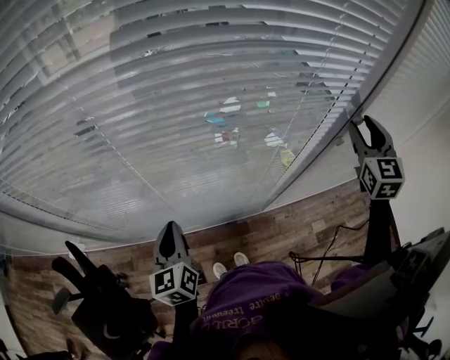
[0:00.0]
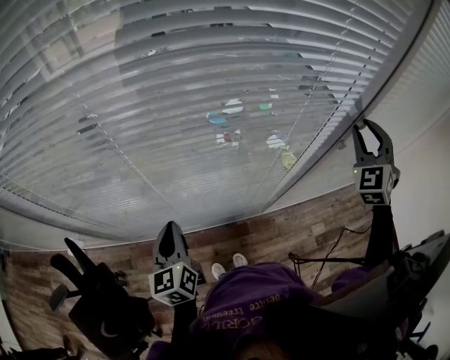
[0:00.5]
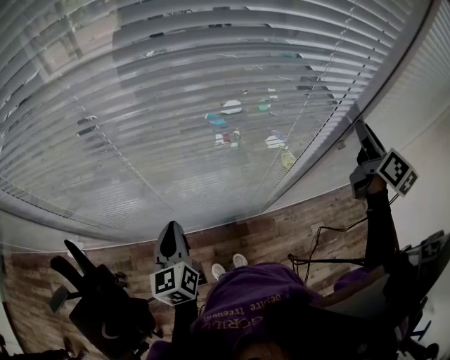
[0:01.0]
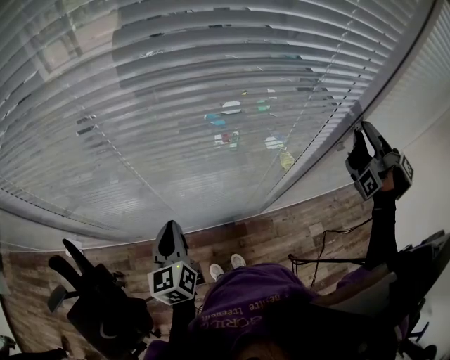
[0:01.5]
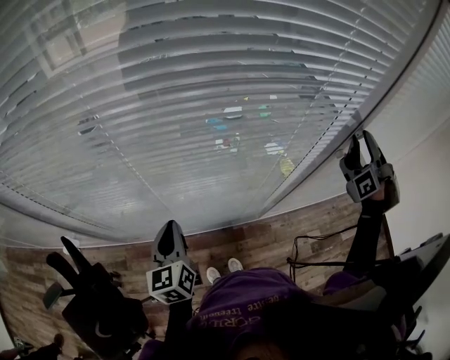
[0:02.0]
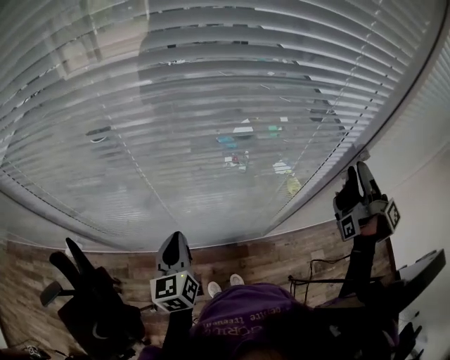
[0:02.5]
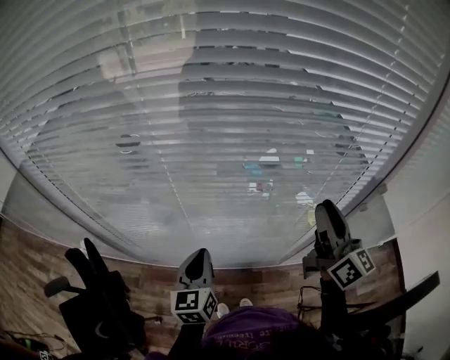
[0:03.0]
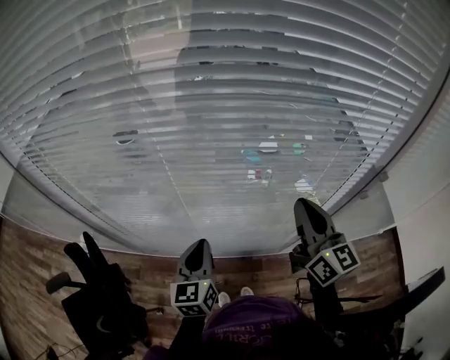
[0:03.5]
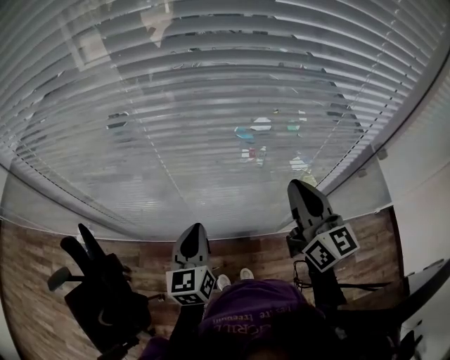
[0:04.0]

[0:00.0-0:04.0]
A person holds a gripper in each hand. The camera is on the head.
0:00.0 to 0:02.0: The right gripper twists approximately 130 degrees clockwise, seen from behind.
0:02.0 to 0:04.0: The right gripper is displaced to the left by some 30 cm, rolls counterclockwise, seen from behind, by some 90 degrees, and closes its fingers.

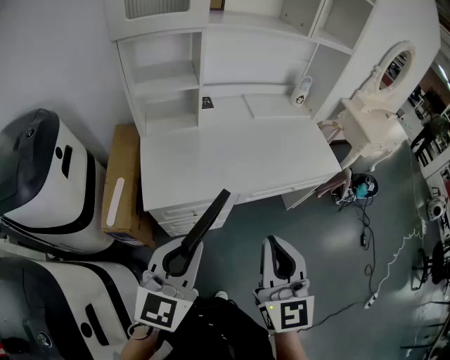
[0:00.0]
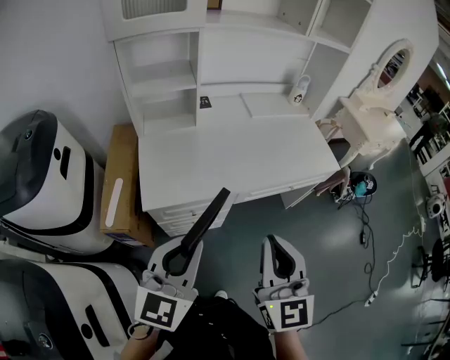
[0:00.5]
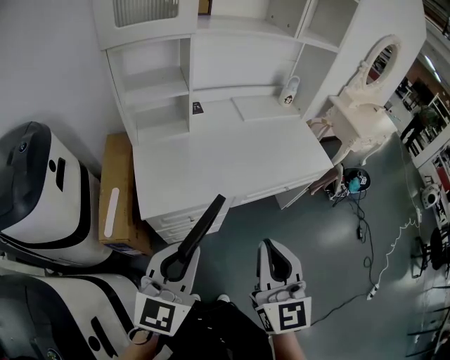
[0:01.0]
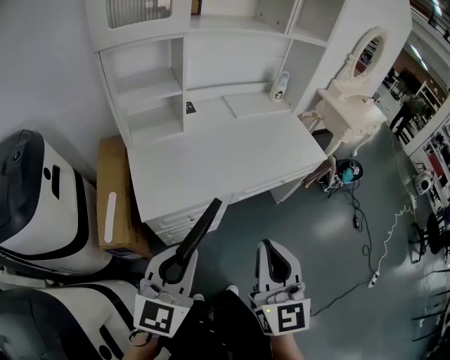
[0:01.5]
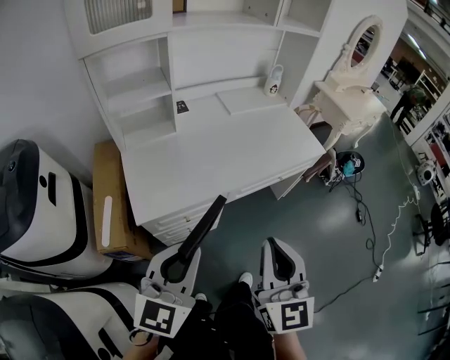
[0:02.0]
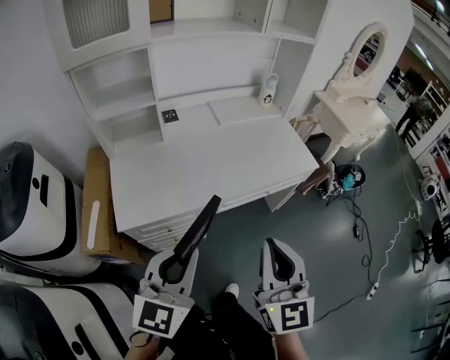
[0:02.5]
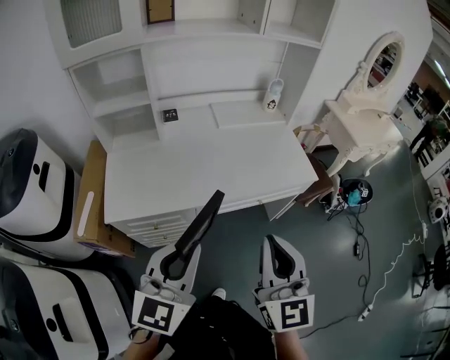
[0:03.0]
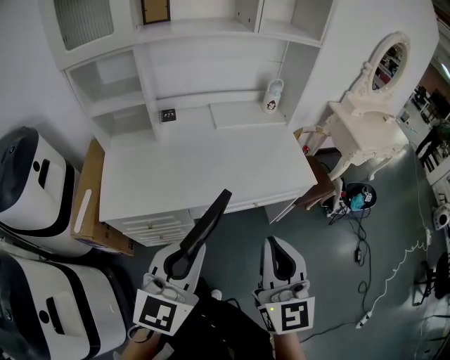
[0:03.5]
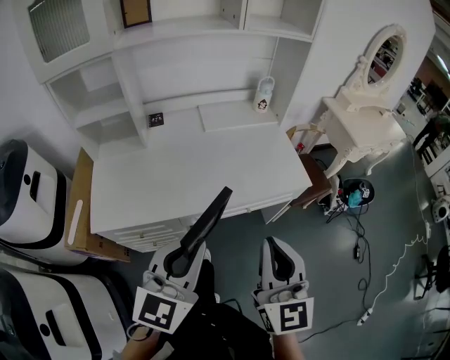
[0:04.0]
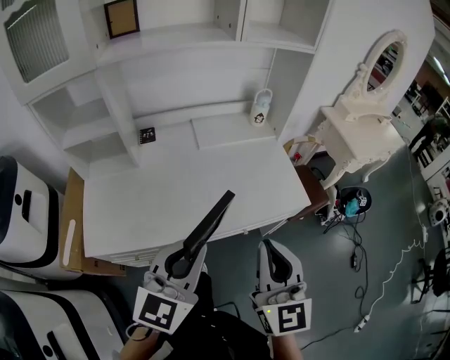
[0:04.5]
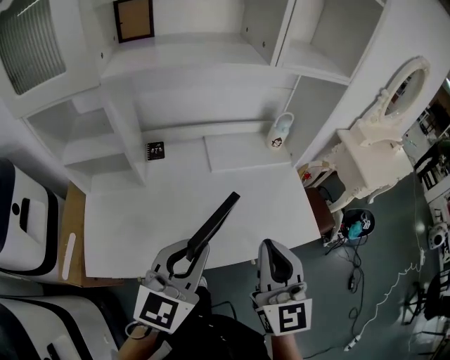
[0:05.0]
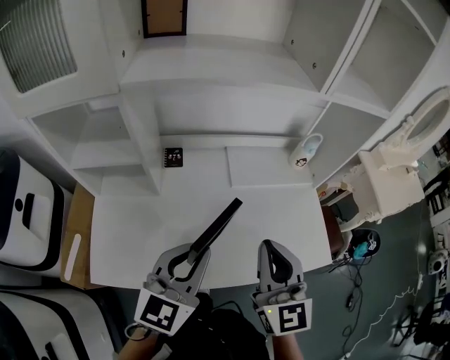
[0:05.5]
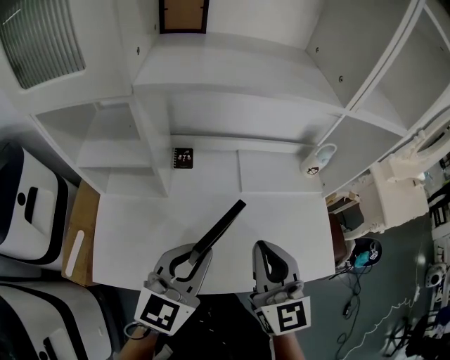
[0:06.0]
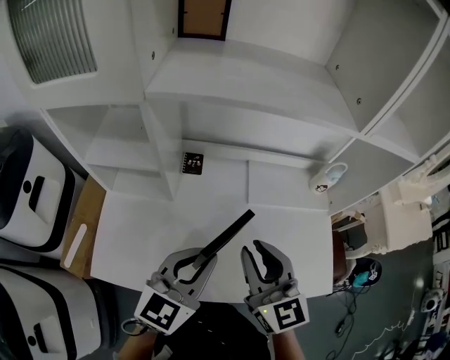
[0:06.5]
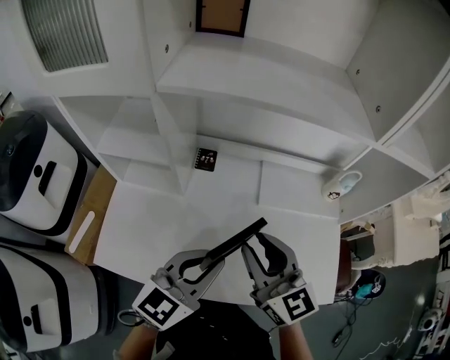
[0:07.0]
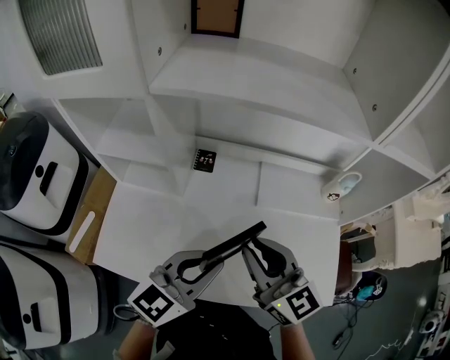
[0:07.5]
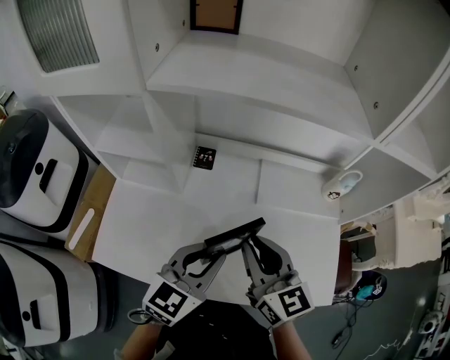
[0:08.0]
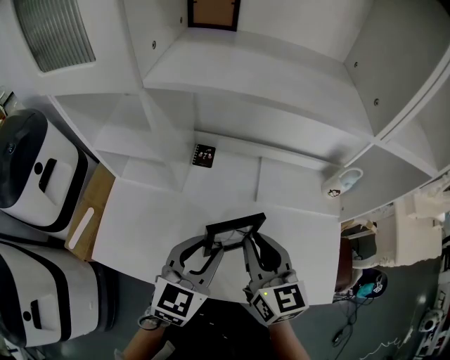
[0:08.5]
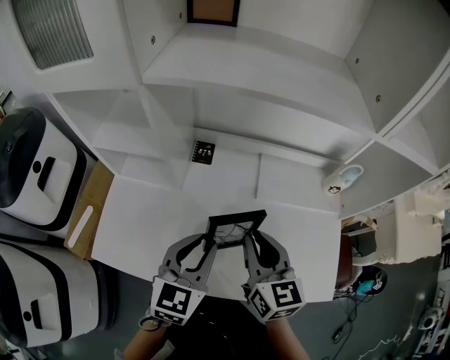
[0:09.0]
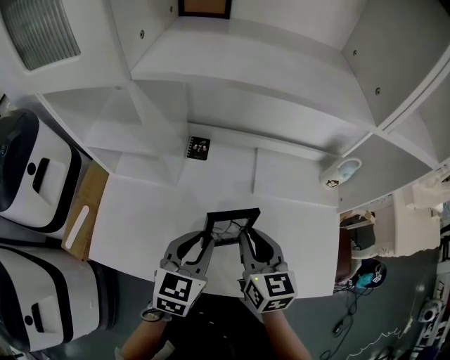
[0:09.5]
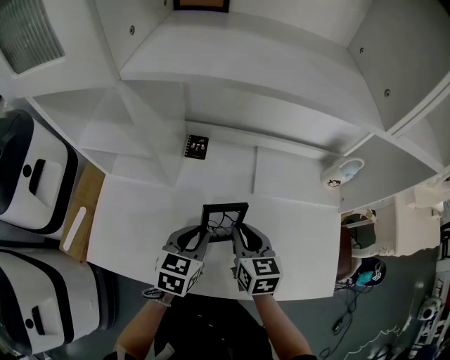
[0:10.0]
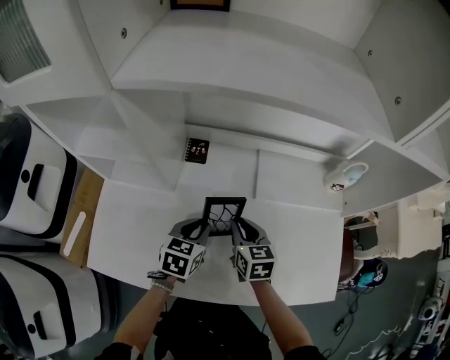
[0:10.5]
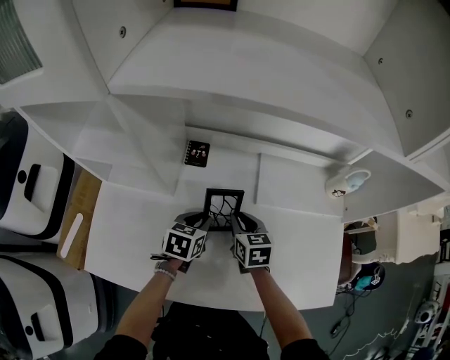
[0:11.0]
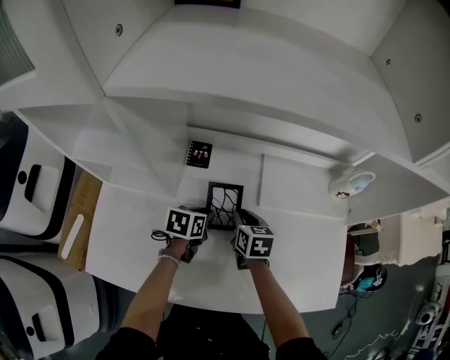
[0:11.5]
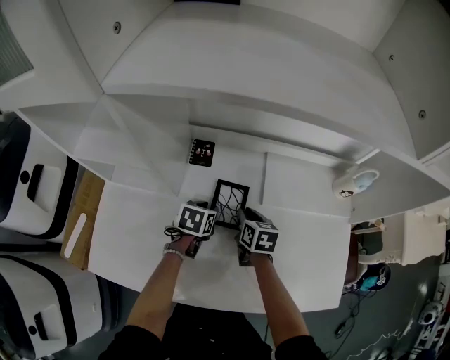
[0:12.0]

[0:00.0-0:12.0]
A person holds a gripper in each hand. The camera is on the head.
0:00.0 to 0:02.0: There are only small adjustments of the grippers.
0:02.0 to 0:04.0: Both grippers travel together to the right and forward, about 30 cm.
0:04.0 to 0:06.0: The grippers both shift forward and to the left by about 35 cm.
0:06.0 to 0:08.0: The right gripper is displaced forward by roughly 5 cm, and turns by some 20 degrees; the left gripper changes place by some 5 cm.
0:08.0 to 0:10.0: The grippers both shift downward by some 15 cm. The right gripper turns by some 20 degrees. Meanwhile the left gripper rotates some 30 degrees.
0:10.0 to 0:12.0: The left gripper is displaced forward and downward by approximately 20 cm, and swivels some 20 degrees. Meanwhile the right gripper moves downward and forward, some 15 cm.

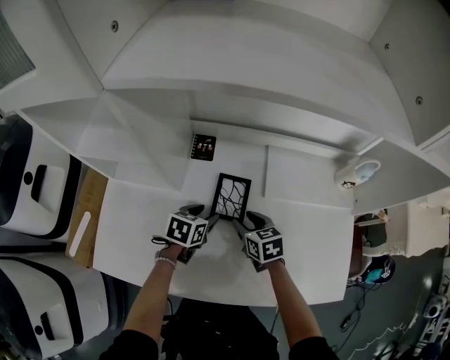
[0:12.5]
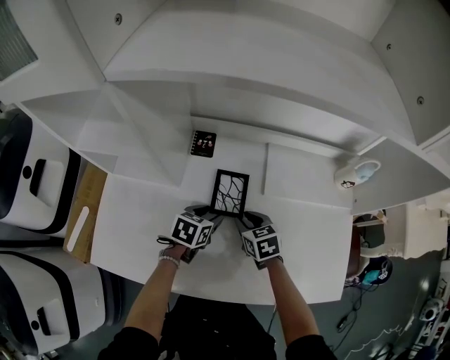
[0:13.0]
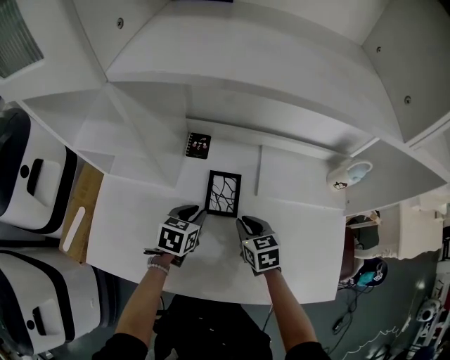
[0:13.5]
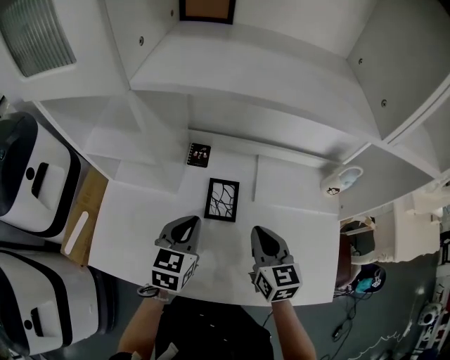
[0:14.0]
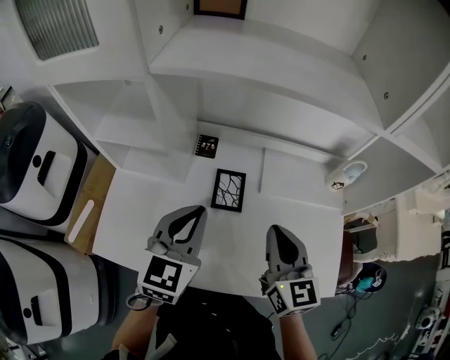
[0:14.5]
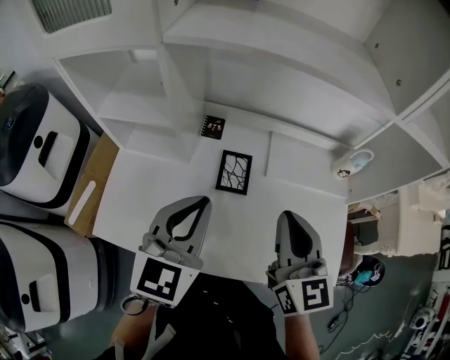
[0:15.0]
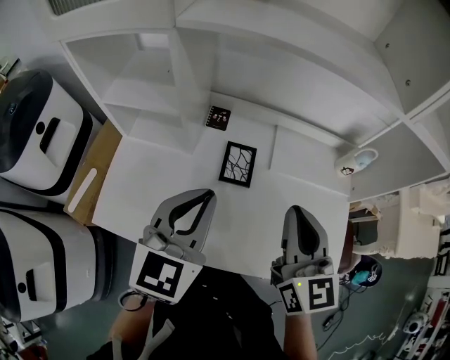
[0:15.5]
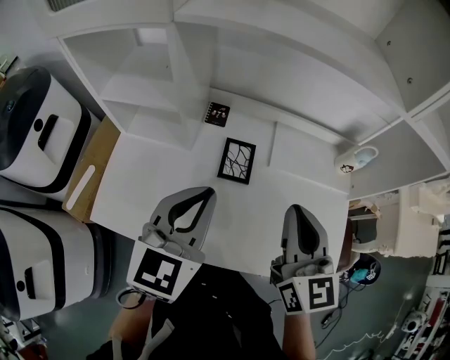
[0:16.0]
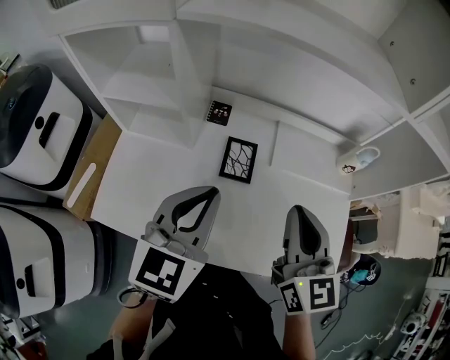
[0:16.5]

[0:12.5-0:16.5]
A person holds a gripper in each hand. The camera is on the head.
0:12.5 to 0:14.5: Both grippers travel together upward, approximately 25 cm. The right gripper tips its fingers upward by approximately 30 degrees, and closes up; the left gripper angles its fingers upward, by about 30 degrees, and closes up.
0:14.5 to 0:16.5: The left gripper shifts by some 5 cm. Meanwhile the right gripper changes place by about 5 cm.

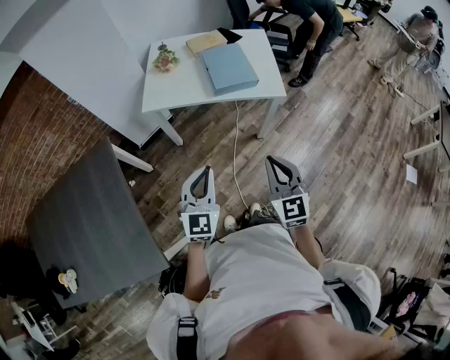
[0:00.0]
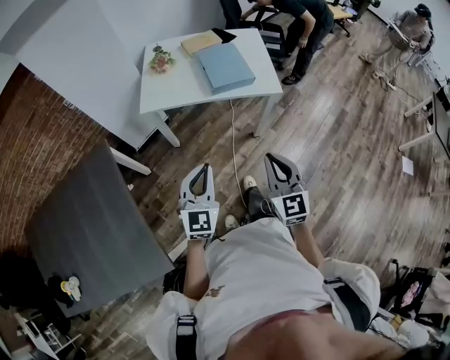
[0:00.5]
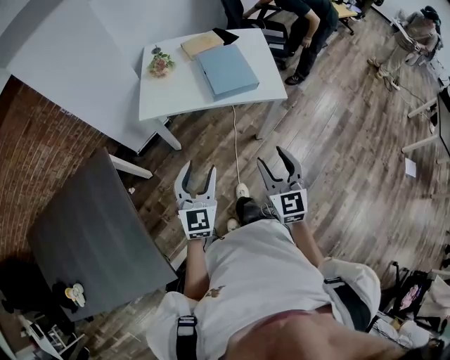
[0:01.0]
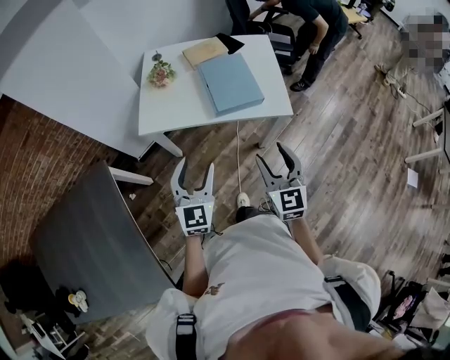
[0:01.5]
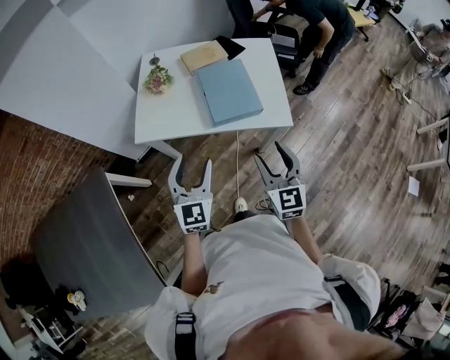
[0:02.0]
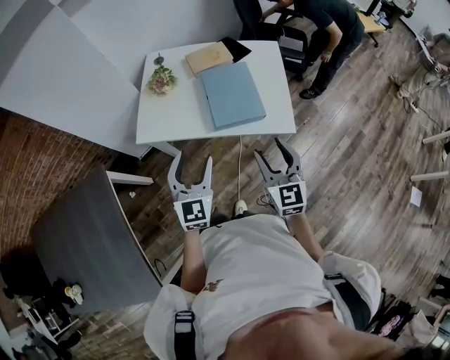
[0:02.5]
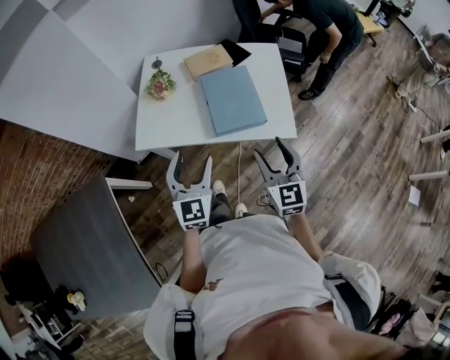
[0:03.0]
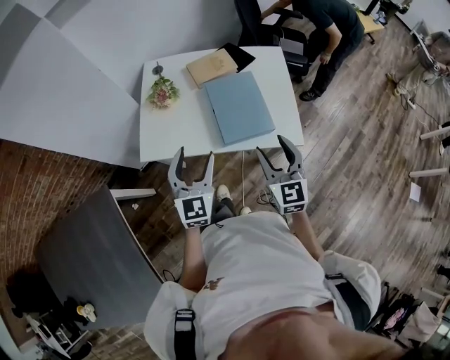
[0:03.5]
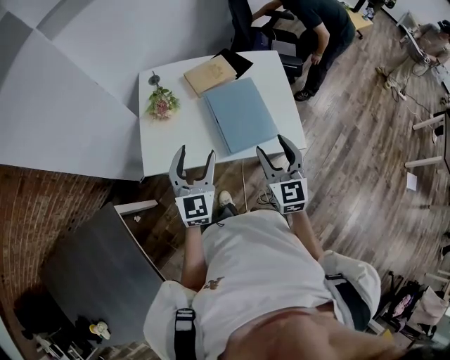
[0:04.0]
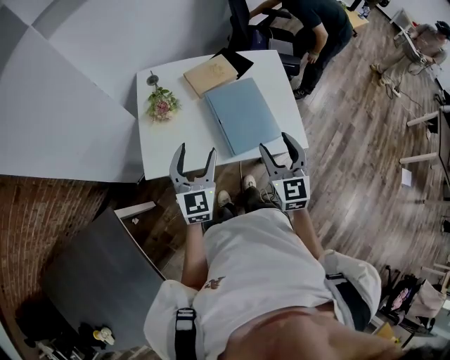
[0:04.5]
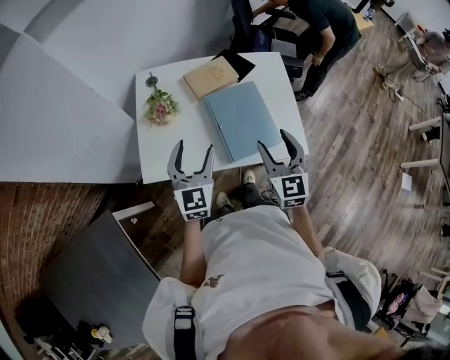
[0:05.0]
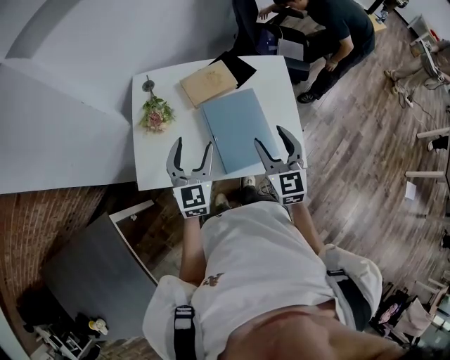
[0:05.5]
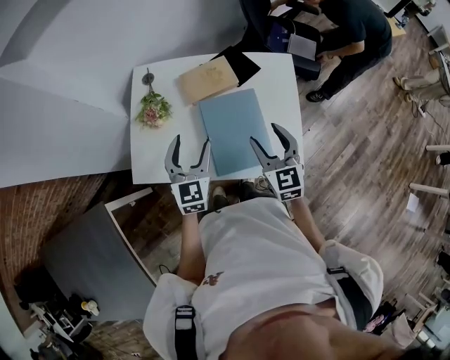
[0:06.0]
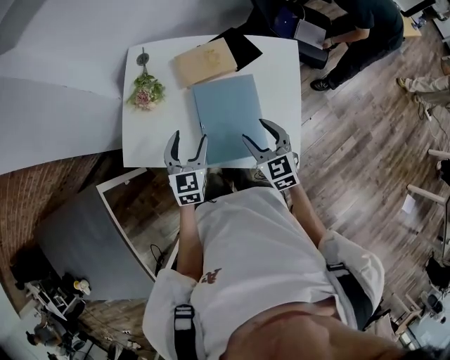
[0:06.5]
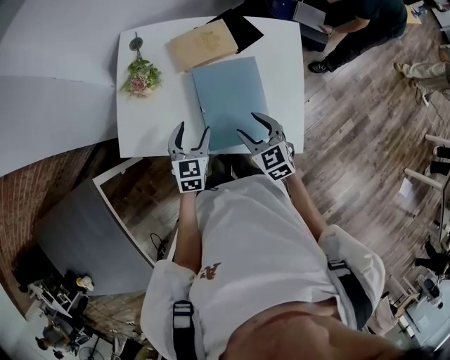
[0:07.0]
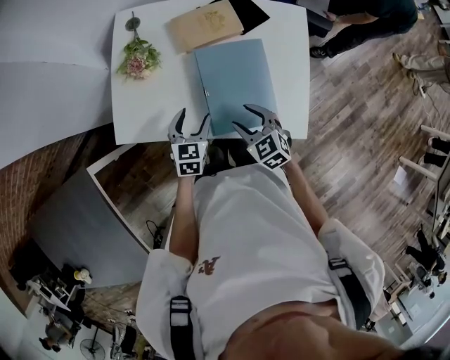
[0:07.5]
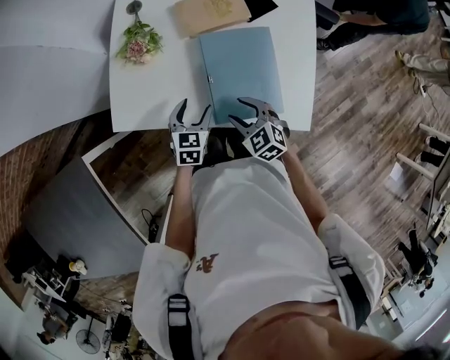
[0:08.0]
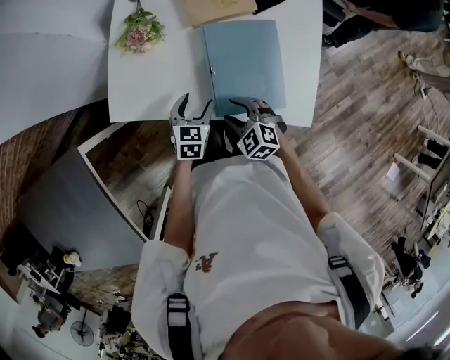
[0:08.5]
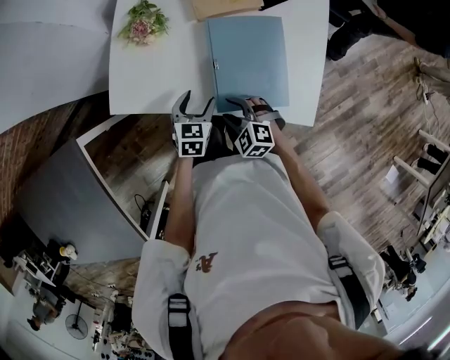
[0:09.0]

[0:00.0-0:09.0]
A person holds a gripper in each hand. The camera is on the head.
0:00.0 to 0:02.0: The two grippers go some 25 cm forward. The left gripper opens up. Meanwhile the right gripper opens up.
0:02.0 to 0:04.5: Both grippers move forward, roughly 20 cm.
0:04.5 to 0:07.0: The right gripper is displaced downward and forward by about 20 cm, and changes its angle by approximately 40 degrees, while the left gripper is displaced downward, forward and to the right by approximately 20 cm, and turns by about 30 degrees.
0:07.0 to 0:09.0: The right gripper moves to the left, downward and backward, approximately 20 cm, and rotates about 40 degrees. The left gripper heads downward, covering approximately 10 cm.
